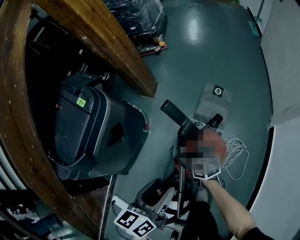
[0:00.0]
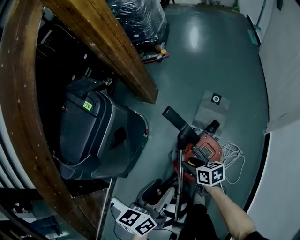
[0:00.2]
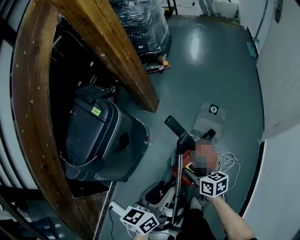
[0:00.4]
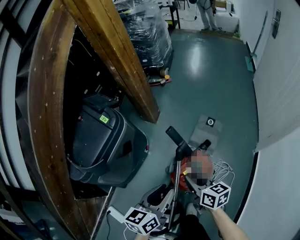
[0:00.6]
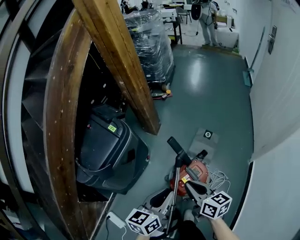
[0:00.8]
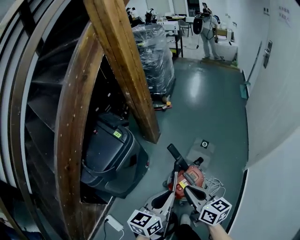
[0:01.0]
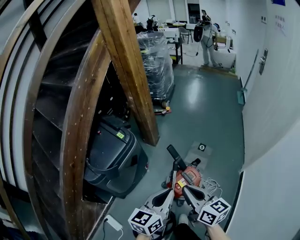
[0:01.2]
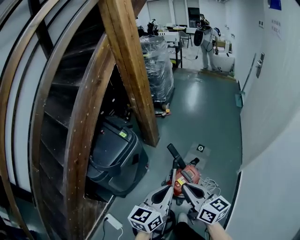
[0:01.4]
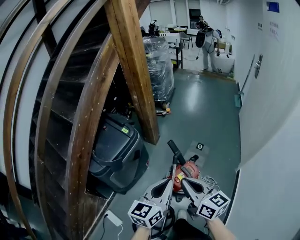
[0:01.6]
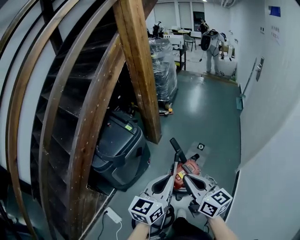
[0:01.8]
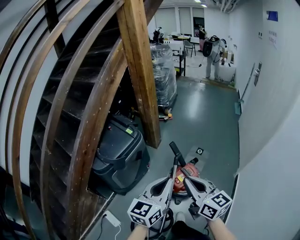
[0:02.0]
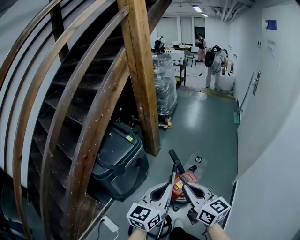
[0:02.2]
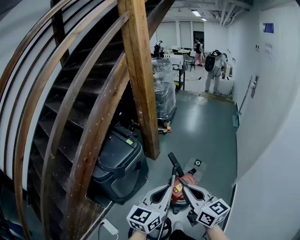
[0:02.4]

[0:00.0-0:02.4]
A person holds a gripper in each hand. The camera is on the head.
0:00.0 to 0:01.2: The left gripper shifts about 30 cm upward, rotates about 20 degrees, and closes its fingers. Meanwhile the right gripper travels upward by some 50 cm, changes its angle by about 40 degrees, and closes its fingers.
0:01.2 to 0:02.4: Both grippers move backward and upward, some 15 cm.

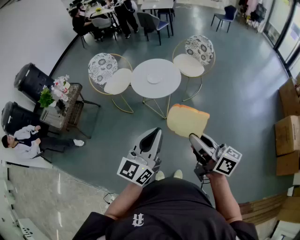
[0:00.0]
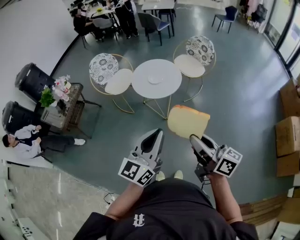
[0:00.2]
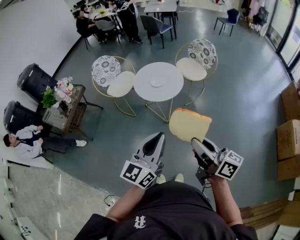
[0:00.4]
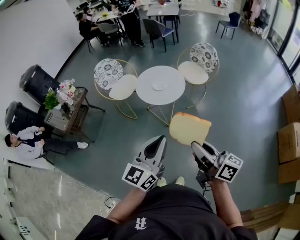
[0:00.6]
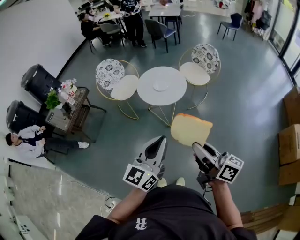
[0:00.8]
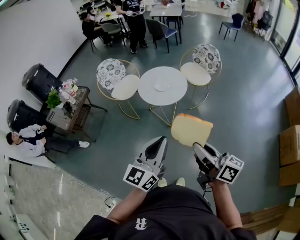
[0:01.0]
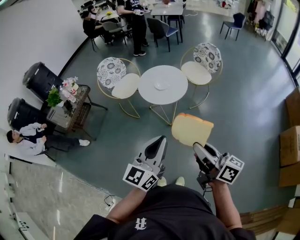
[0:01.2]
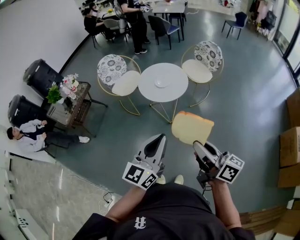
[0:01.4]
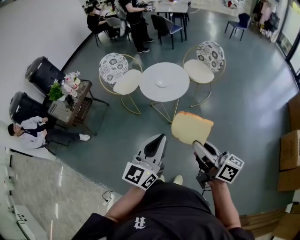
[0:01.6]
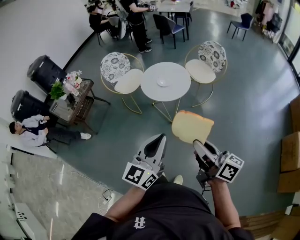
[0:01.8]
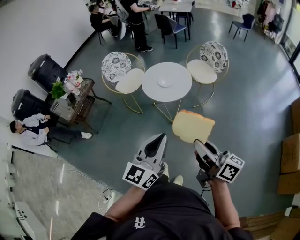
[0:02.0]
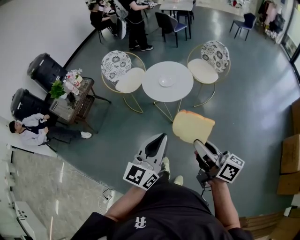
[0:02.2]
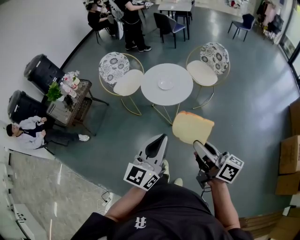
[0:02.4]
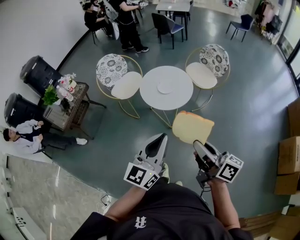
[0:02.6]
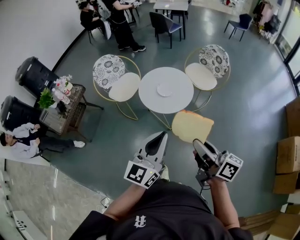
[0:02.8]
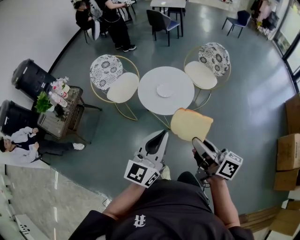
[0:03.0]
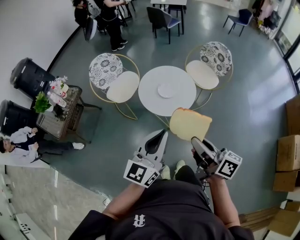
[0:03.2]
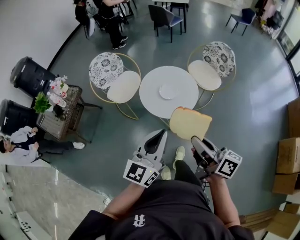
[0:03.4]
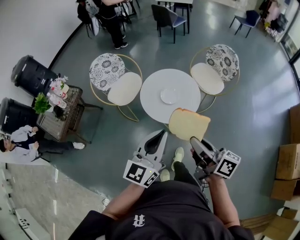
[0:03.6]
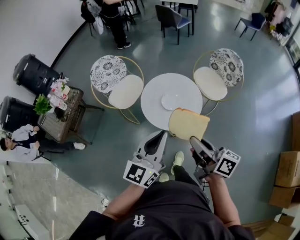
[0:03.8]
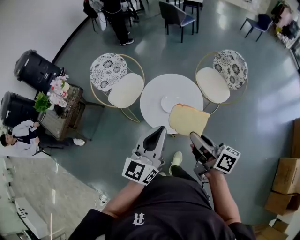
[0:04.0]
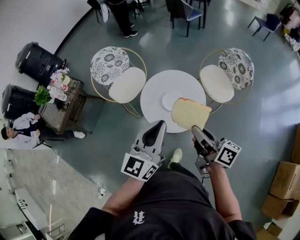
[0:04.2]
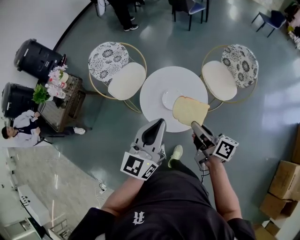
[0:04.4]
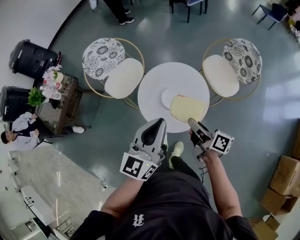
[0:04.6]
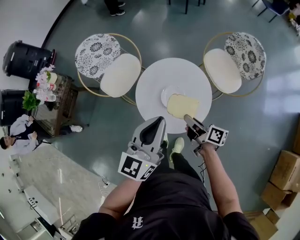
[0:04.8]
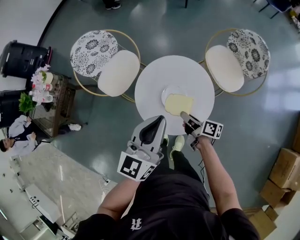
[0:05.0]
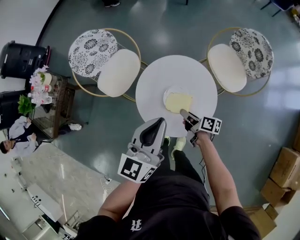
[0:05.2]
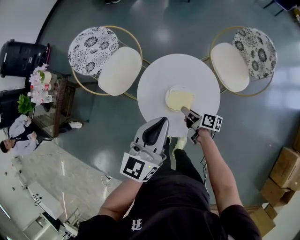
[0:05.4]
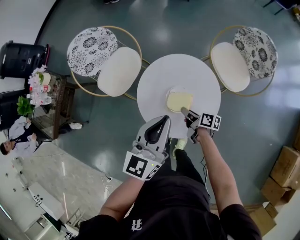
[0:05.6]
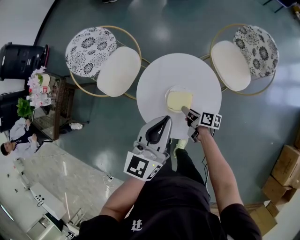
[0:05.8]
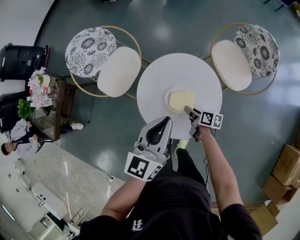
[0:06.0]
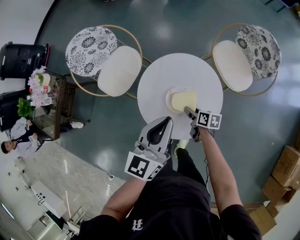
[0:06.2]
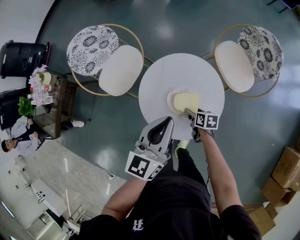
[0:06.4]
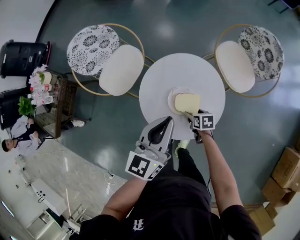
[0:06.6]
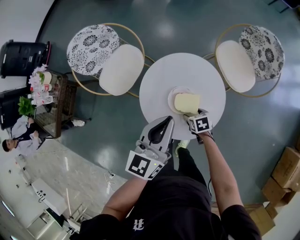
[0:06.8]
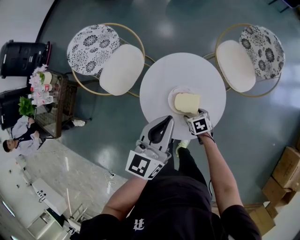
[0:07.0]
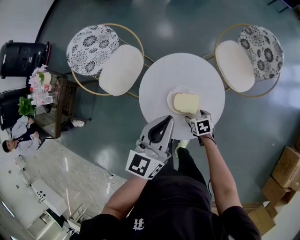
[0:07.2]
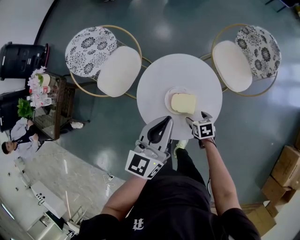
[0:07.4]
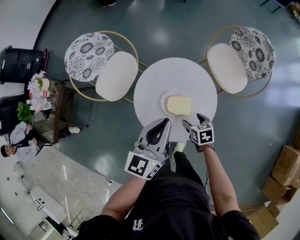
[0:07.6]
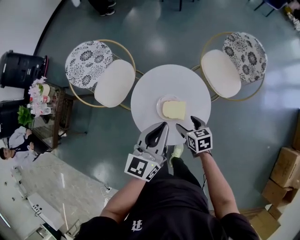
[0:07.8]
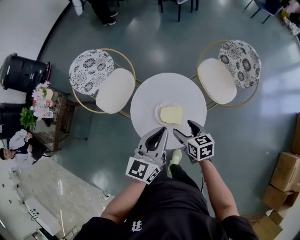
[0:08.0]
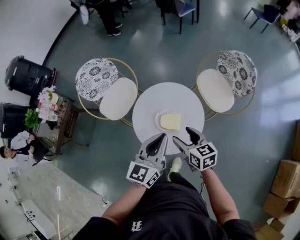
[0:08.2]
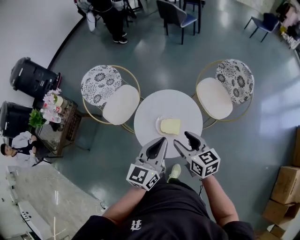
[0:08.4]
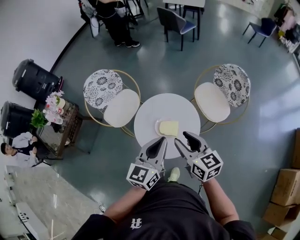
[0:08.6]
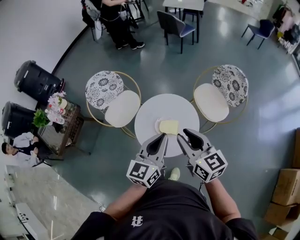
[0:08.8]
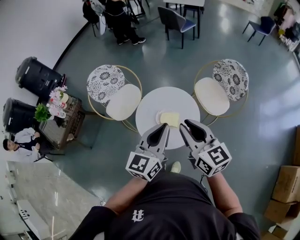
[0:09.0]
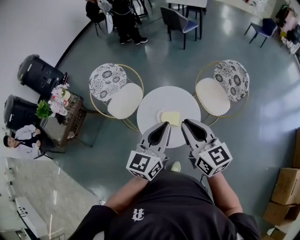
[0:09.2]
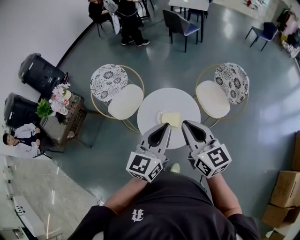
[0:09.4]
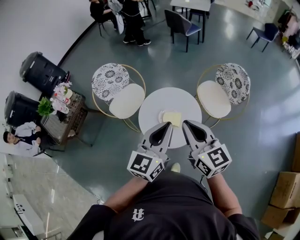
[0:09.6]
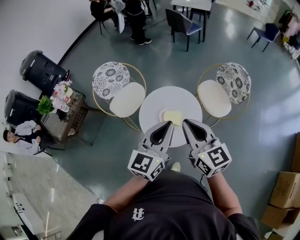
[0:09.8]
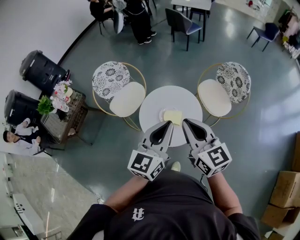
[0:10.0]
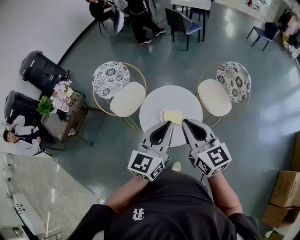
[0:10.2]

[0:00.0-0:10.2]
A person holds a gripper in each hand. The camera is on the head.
0:00.0 to 0:01.4: The grippers stay close to where they were, moving slightly.
0:01.4 to 0:03.0: Both grippers travel together forward, roughly 20 cm.
0:03.0 to 0:04.4: The two grippers go about 30 cm forward.
0:04.4 to 0:05.8: The right gripper heads downward and forward, covering roughly 35 cm, and rotates some 30 degrees, while the left gripper moves forward and downward, roughly 20 cm.
0:05.8 to 0:07.2: The right gripper heads downward, covering some 5 cm, points its fingers some 40 degrees further downward, and opens its fingers.
0:07.2 to 0:08.8: The left gripper is displaced upward, backward and to the right by about 20 cm, while the right gripper shifts some 50 cm upward, tips its fingers upward by roughly 60 degrees, and closes.
0:08.8 to 0:10.2: Both grippers move upward, some 5 cm.

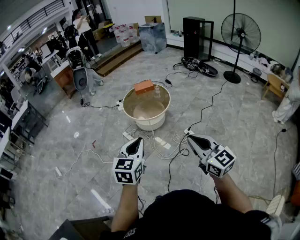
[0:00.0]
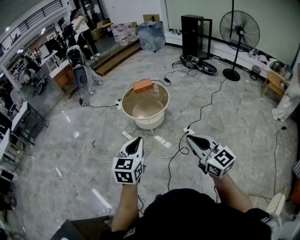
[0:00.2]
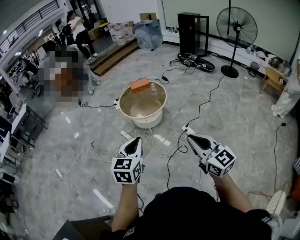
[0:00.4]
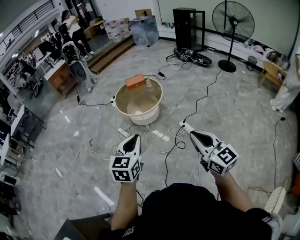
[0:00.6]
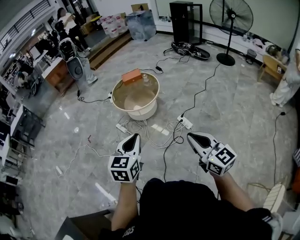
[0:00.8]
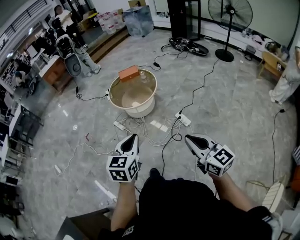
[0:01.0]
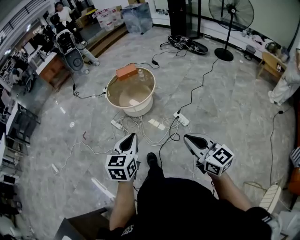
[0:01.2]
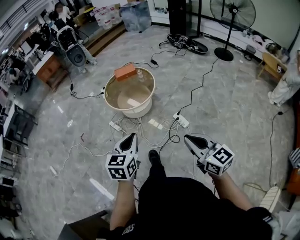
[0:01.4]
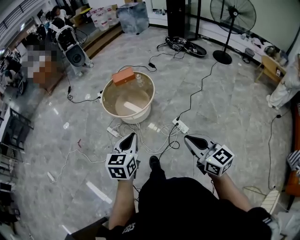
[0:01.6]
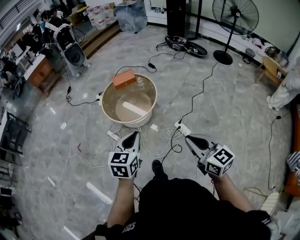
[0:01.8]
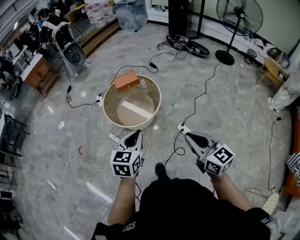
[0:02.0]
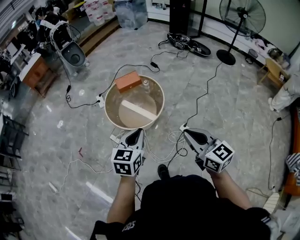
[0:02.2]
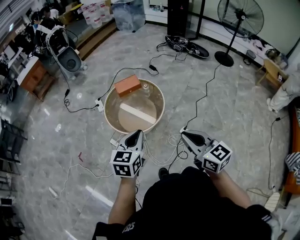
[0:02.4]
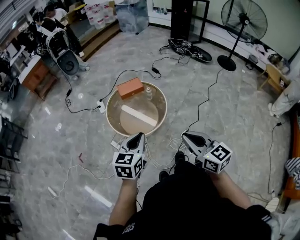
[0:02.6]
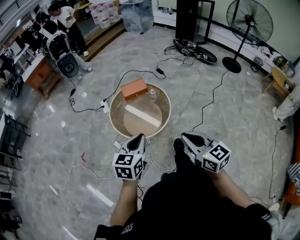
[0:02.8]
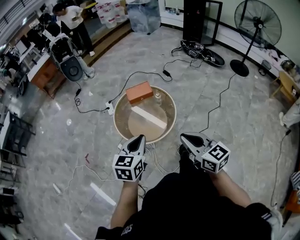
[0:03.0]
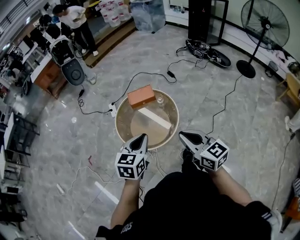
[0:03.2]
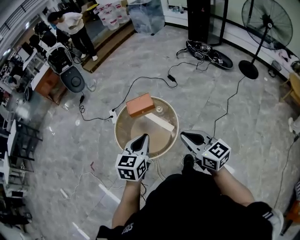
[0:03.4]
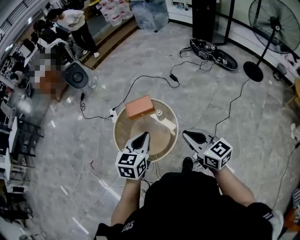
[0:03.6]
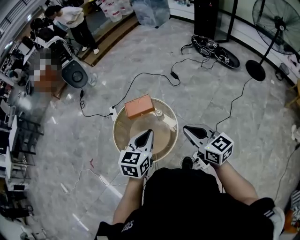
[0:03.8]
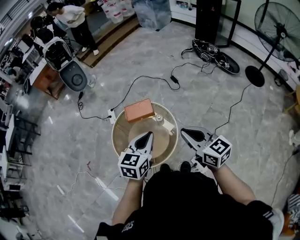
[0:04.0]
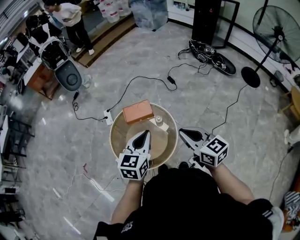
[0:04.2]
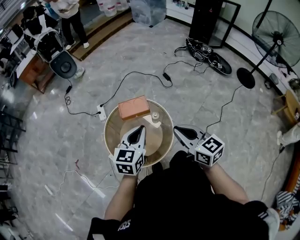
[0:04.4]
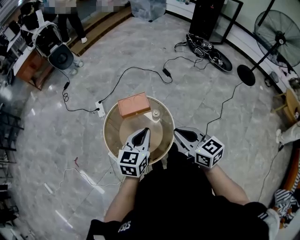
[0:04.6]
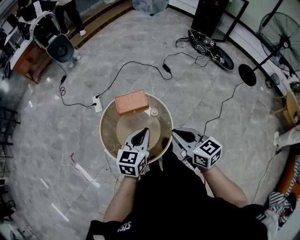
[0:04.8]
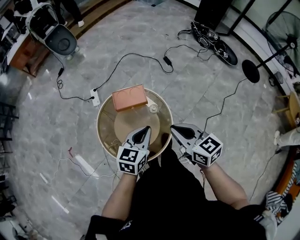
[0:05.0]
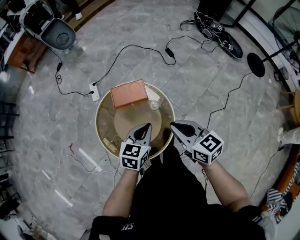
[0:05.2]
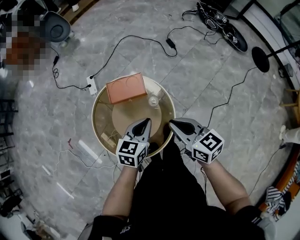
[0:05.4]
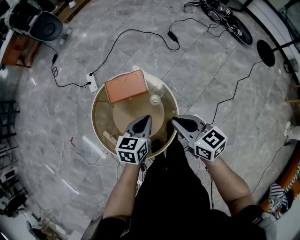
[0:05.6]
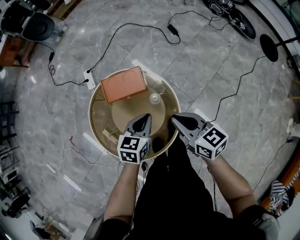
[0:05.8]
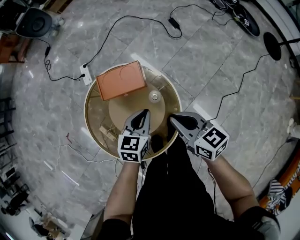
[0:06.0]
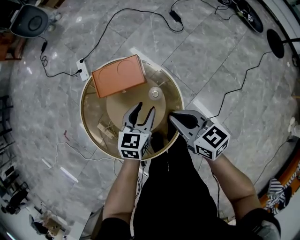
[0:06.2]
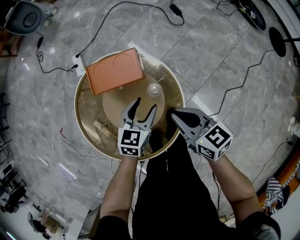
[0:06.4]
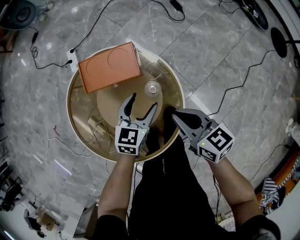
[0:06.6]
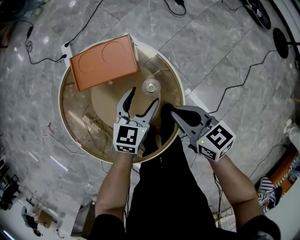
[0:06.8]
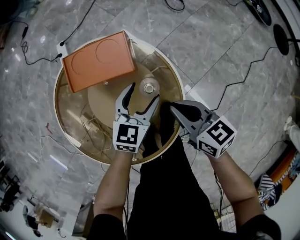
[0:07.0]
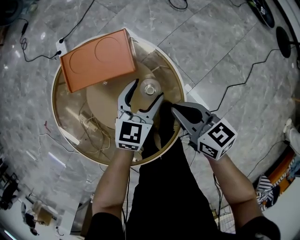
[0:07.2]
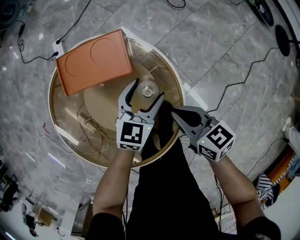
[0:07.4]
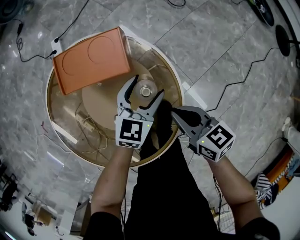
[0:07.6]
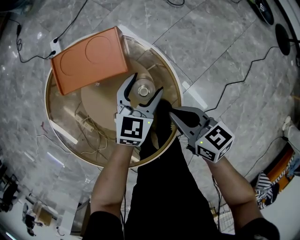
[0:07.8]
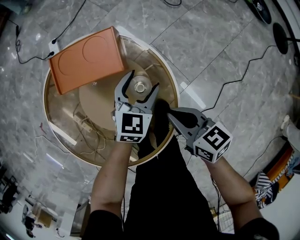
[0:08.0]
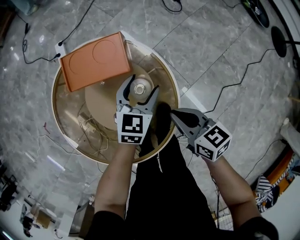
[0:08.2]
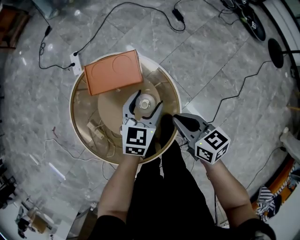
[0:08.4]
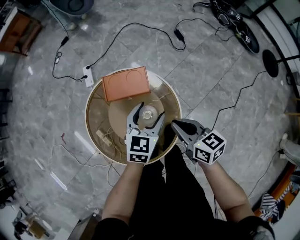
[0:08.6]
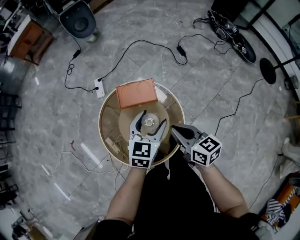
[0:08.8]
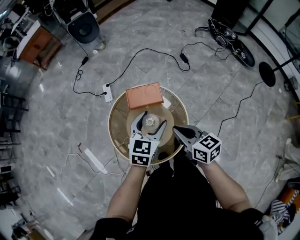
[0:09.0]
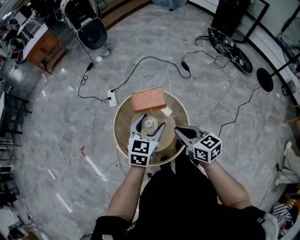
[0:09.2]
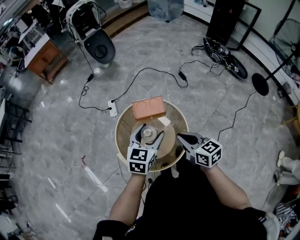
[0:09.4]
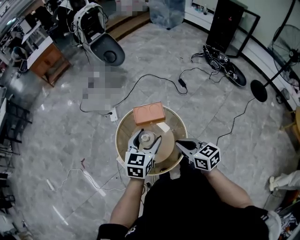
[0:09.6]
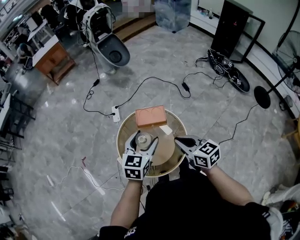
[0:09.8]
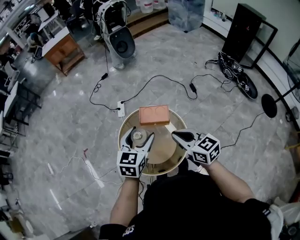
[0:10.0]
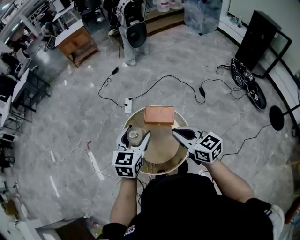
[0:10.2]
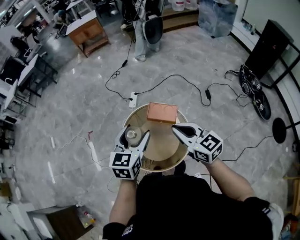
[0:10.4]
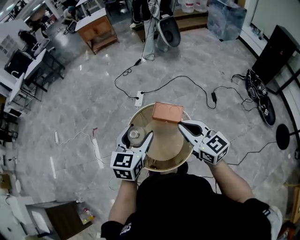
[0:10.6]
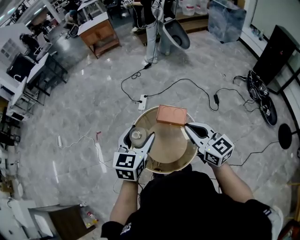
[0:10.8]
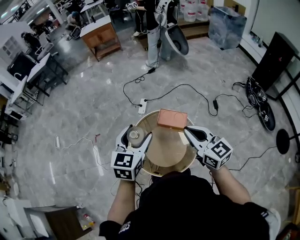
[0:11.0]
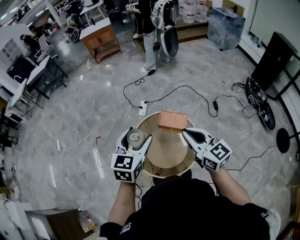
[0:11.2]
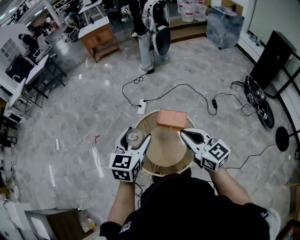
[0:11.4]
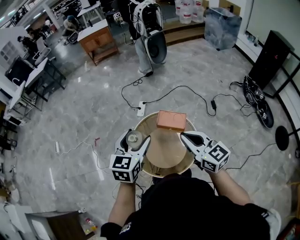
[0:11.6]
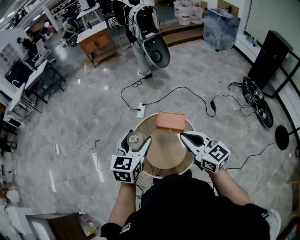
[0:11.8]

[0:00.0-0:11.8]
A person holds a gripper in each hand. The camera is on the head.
0:00.0 to 0:01.4: The right gripper is displaced to the right, downward and forward by roughly 15 cm. The left gripper goes about 15 cm to the right, forward and downward.
0:01.4 to 0:03.0: The two grippers travel together, forward, some 50 cm.
0:03.0 to 0:04.4: Both grippers travel together forward, about 35 cm.
0:04.4 to 0:06.0: Both grippers move downward and forward, roughly 40 cm.
0:06.0 to 0:07.4: Both grippers travel together downward, some 20 cm. The left gripper opens its fingers.
0:07.4 to 0:08.8: Both grippers travel together upward, roughly 35 cm.
0:08.8 to 0:10.4: Both grippers move upward, some 25 cm. The right gripper turns by roughly 40 degrees. Meanwhile the left gripper changes its angle by approximately 30 degrees.
0:10.4 to 0:11.8: Both grippers move to the left, approximately 10 cm.
